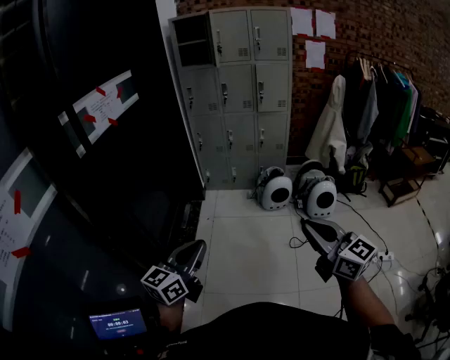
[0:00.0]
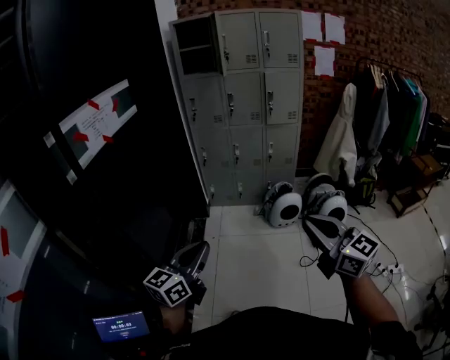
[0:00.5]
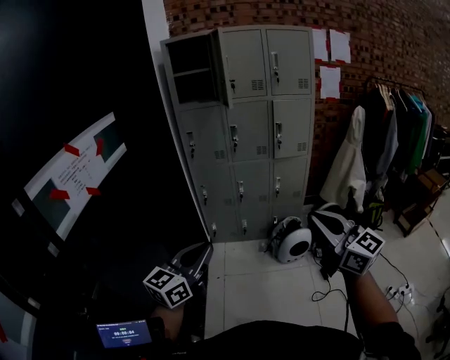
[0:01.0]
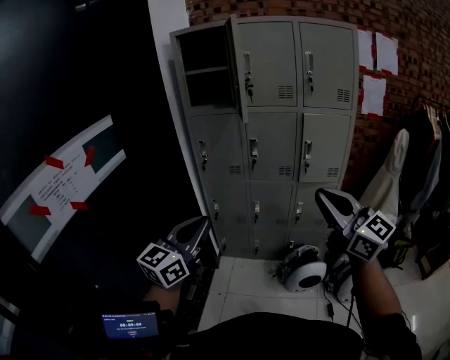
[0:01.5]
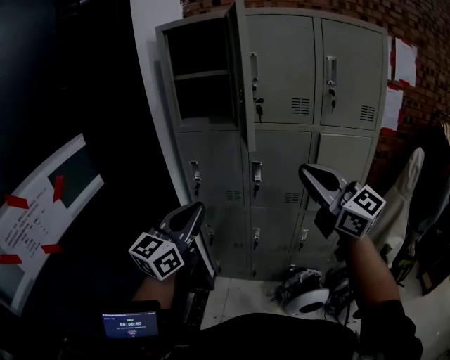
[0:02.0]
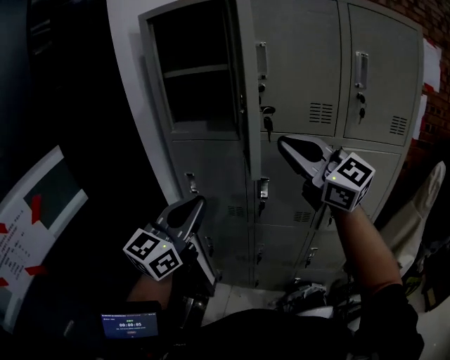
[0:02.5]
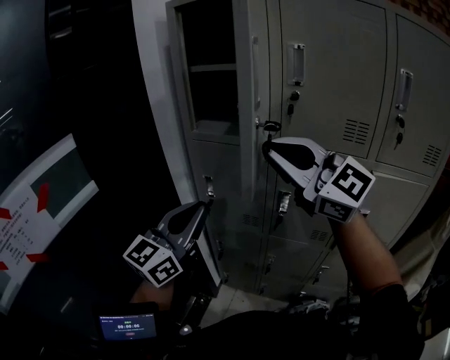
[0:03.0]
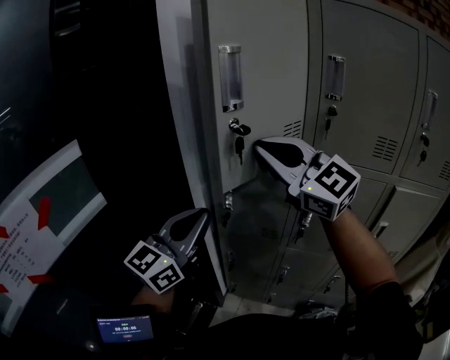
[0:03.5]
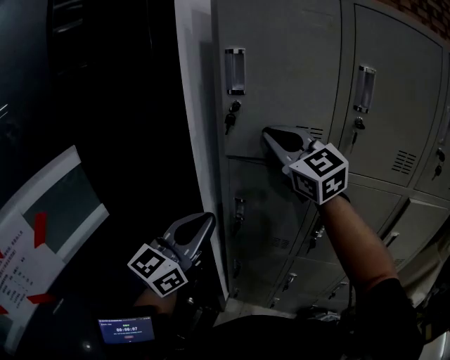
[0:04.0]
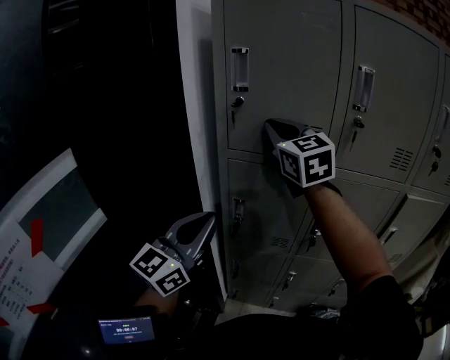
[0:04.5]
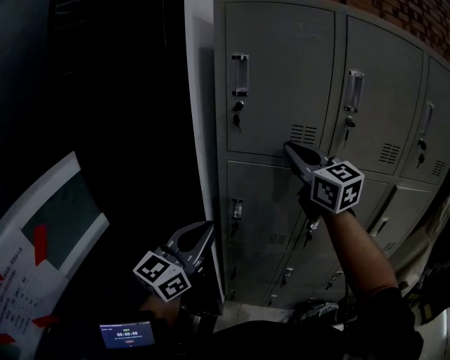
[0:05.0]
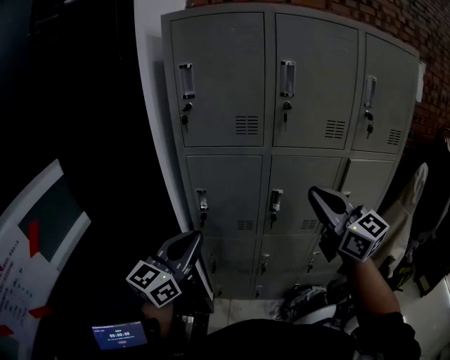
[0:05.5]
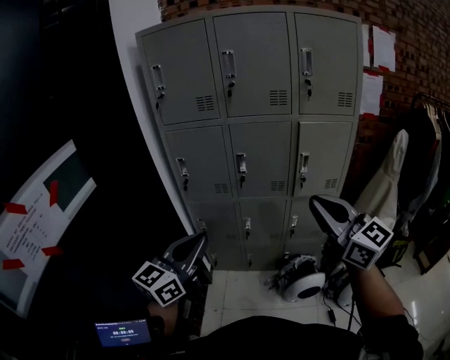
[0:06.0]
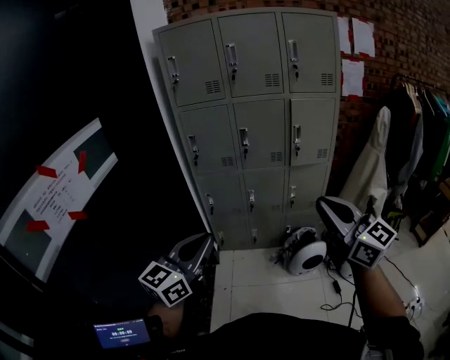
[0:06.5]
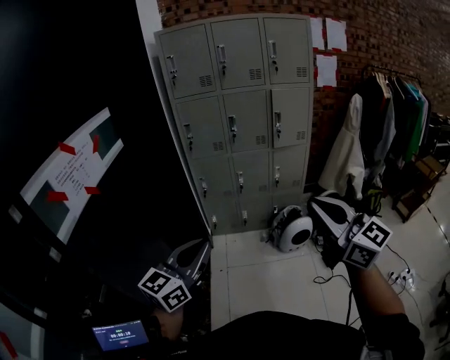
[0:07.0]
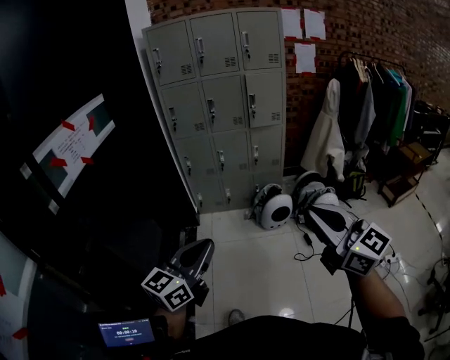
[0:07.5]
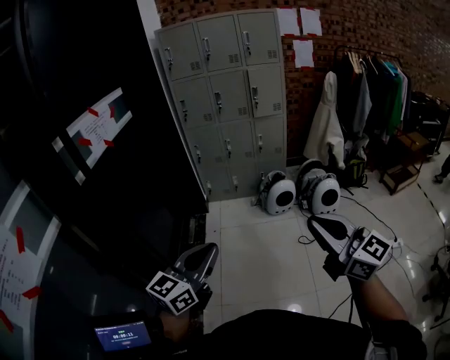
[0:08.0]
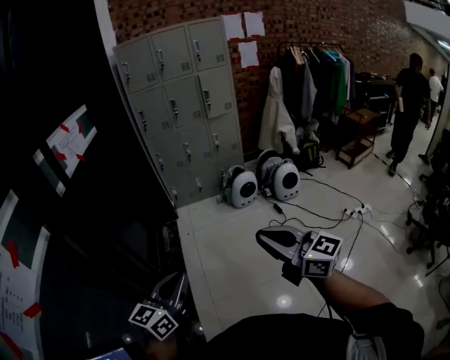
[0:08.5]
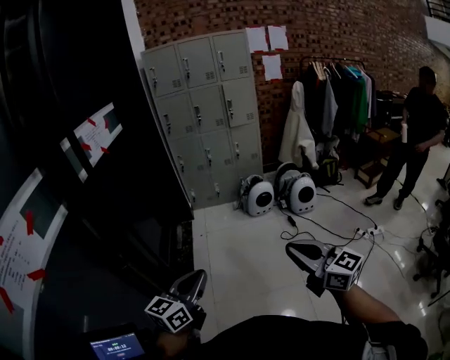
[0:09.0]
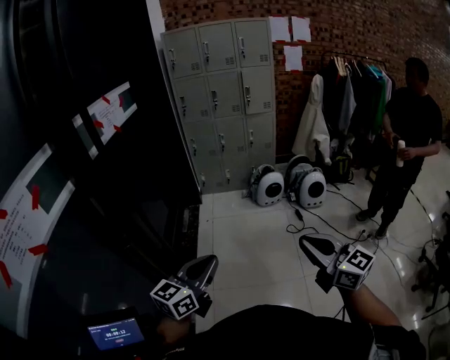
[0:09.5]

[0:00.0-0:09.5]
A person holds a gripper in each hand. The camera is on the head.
0:00.0 to 0:02.0: The pair of grippers is taken forward, approximately 90 cm. The right gripper turns by some 20 degrees.
0:02.0 to 0:04.0: The right gripper moves forward and to the left, about 40 cm. Meanwhile the left gripper goes about 25 cm forward.
0:04.0 to 0:05.5: The left gripper goes roughly 10 cm backward. The right gripper travels to the right and backward by some 30 cm, and rotates some 30 degrees.
0:05.5 to 0:07.5: Both grippers are carried backward, approximately 80 cm.
0:07.5 to 0:09.5: The grippers both shift backward by roughly 35 cm.

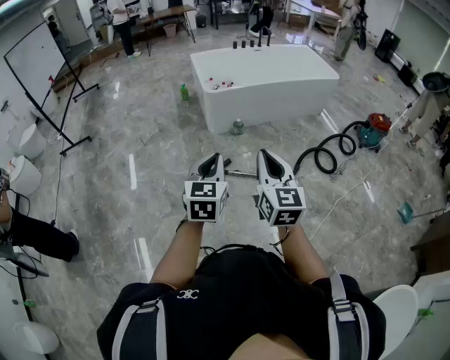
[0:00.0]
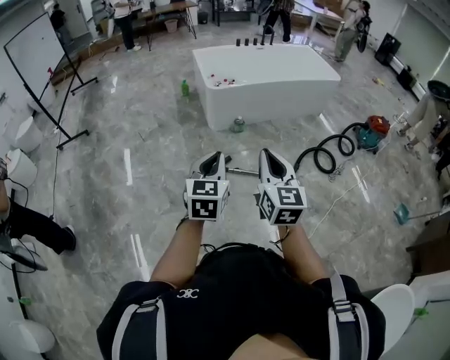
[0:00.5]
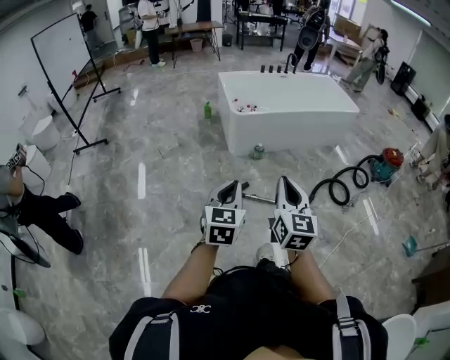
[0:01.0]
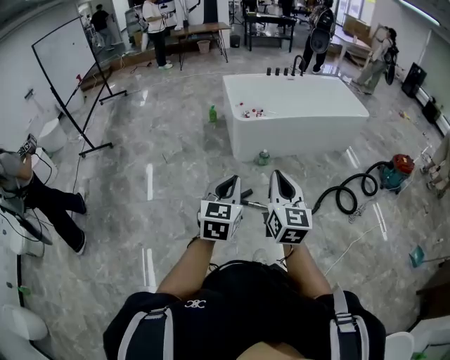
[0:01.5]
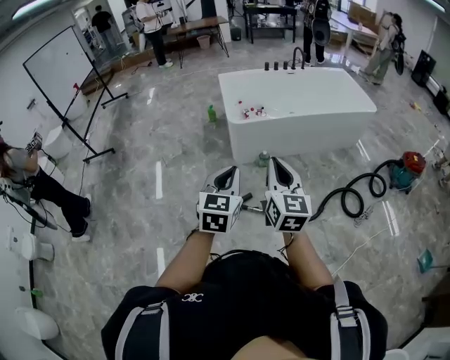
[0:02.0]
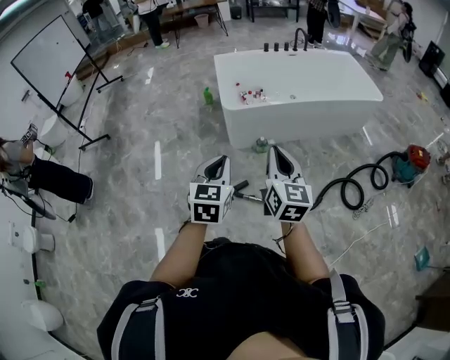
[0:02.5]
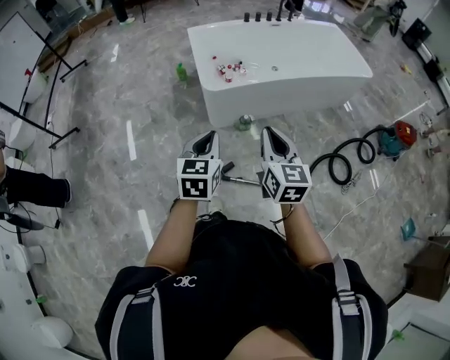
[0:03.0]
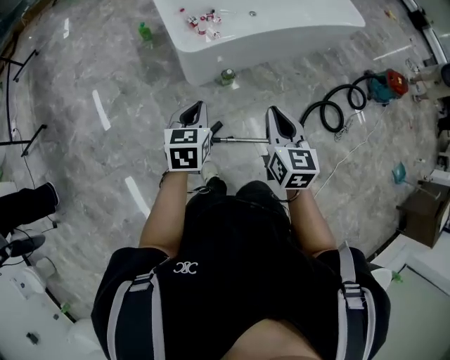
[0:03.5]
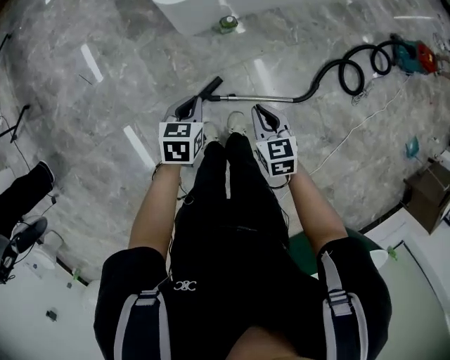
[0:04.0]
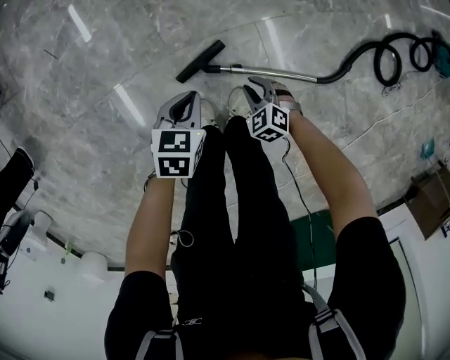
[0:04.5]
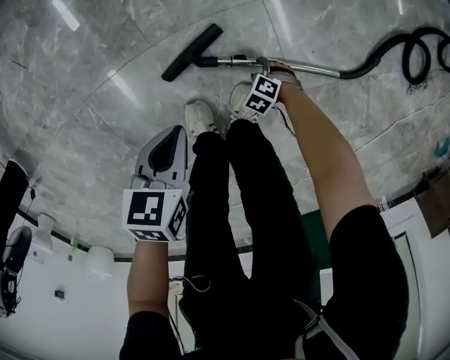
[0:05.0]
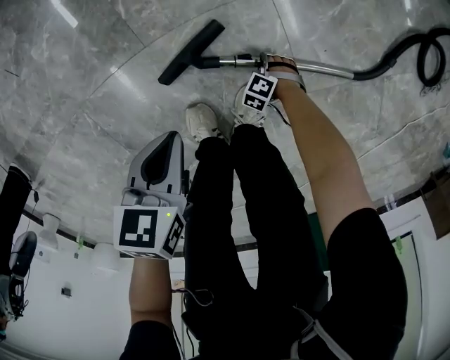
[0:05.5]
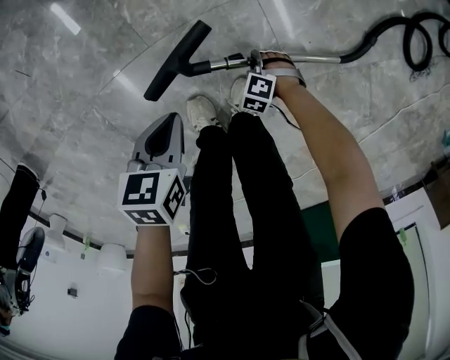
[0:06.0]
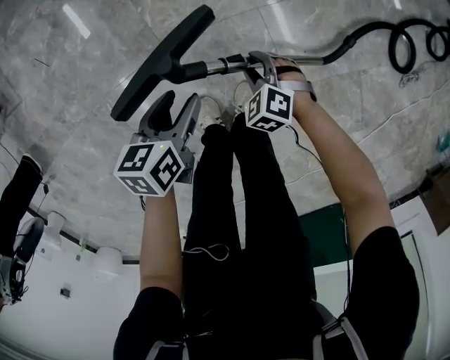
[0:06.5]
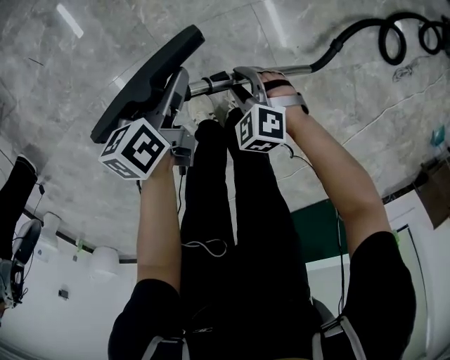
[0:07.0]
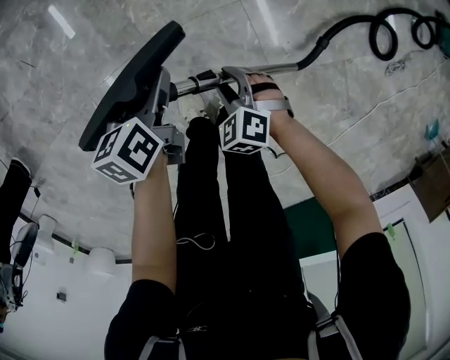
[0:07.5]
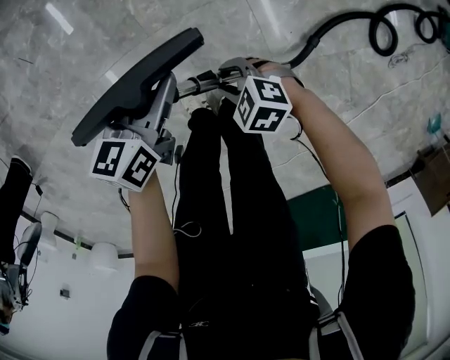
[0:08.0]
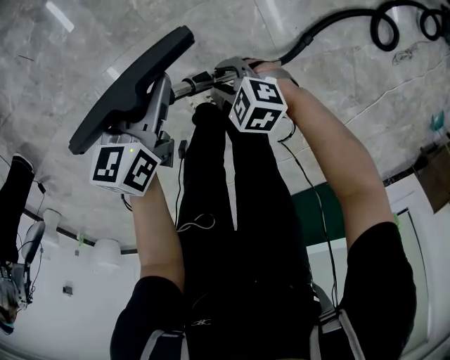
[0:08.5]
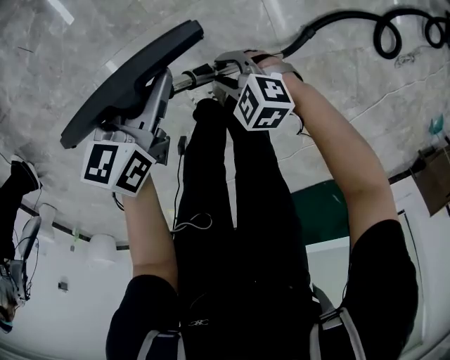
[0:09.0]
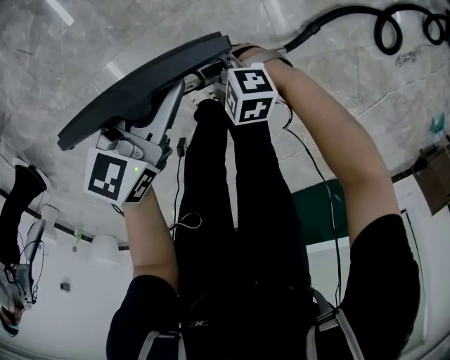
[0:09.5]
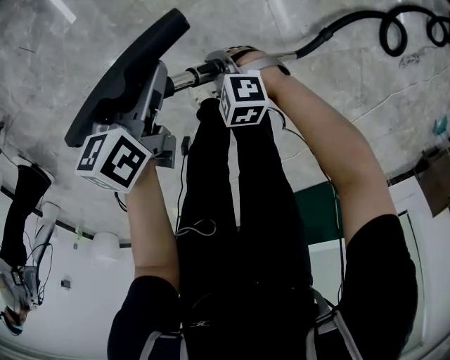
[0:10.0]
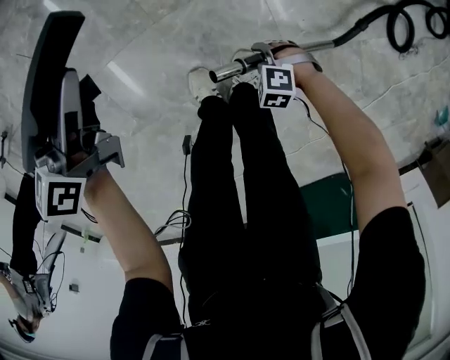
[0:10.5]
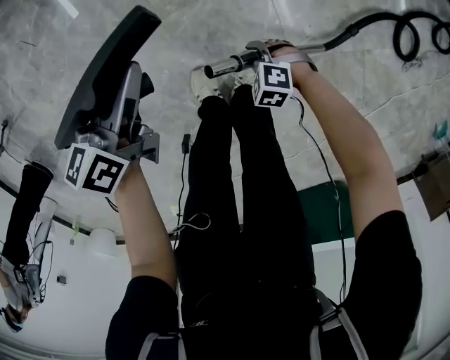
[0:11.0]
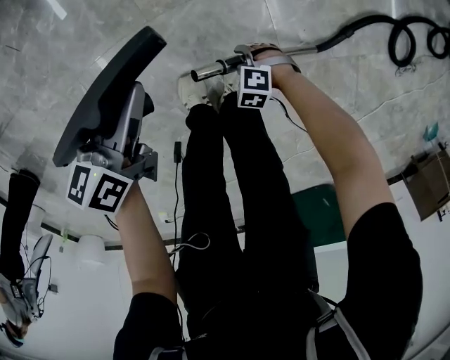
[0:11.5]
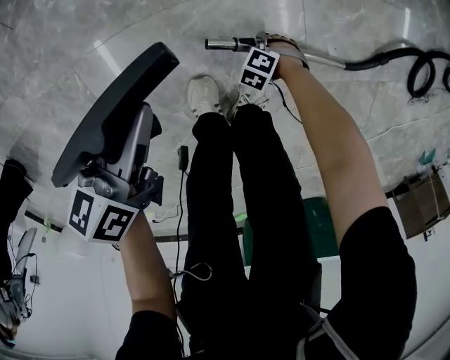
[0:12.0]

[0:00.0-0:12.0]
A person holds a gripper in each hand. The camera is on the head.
0:00.0 to 0:02.0: Both grippers travel together forward, approximately 25 cm.
0:02.0 to 0:04.0: The two grippers go roughly 50 cm downward and forward. The right gripper points its fingers some 40 degrees further downward. Meanwhile the left gripper points its fingers about 30 degrees further downward.
0:04.0 to 0:06.0: The right gripper moves downward, roughly 60 cm, points its fingers about 40 degrees further downward, and opens; the left gripper travels downward by approximately 35 cm.
0:06.0 to 0:08.0: The left gripper heads upward, covering about 10 cm, rotates roughly 30 degrees, and opens up. Meanwhile the right gripper shifts some 25 cm upward, and swivels some 30 degrees.
0:08.0 to 0:10.0: The right gripper changes place by about 10 cm.
0:10.0 to 0:12.0: The left gripper shifts by about 15 cm, while the right gripper is displaced downward by approximately 30 cm, and changes its angle by approximately 30 degrees.

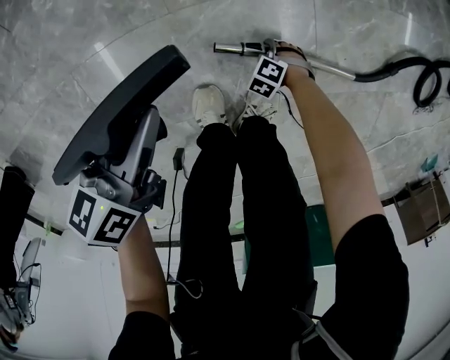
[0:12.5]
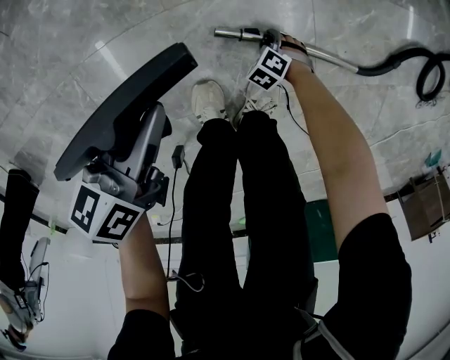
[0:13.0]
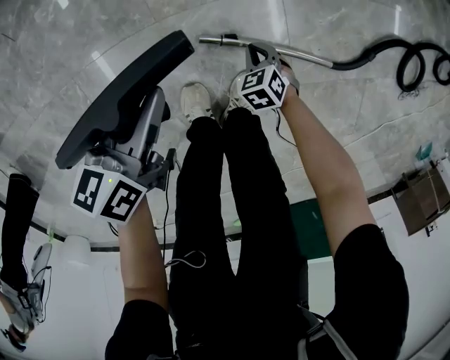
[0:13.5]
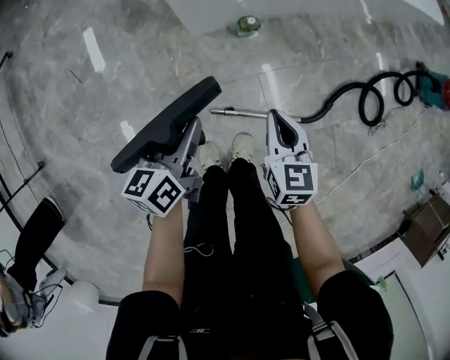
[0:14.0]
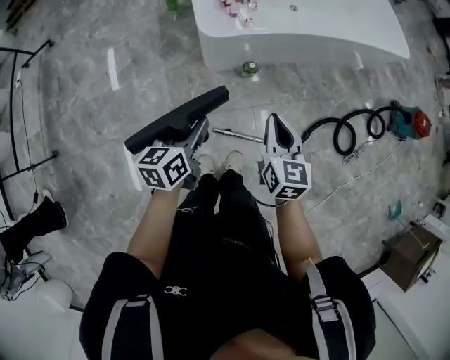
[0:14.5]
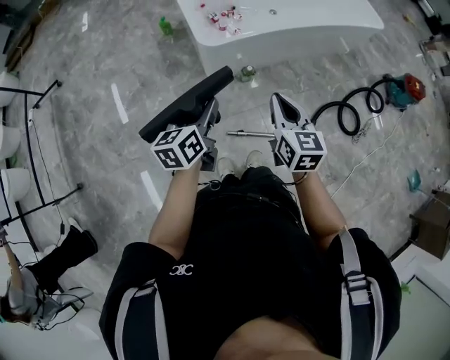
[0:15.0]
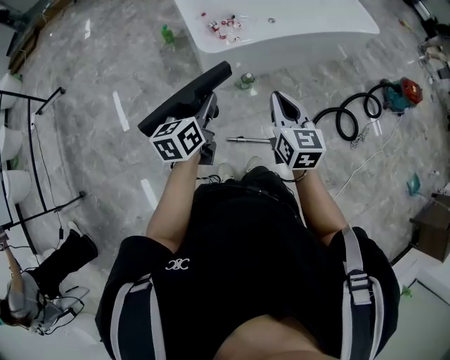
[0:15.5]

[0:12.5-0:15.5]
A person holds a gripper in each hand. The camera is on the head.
0:12.5 to 0:14.0: The right gripper heads upward, covering approximately 60 cm, points its fingers about 50 degrees further upward, and opens and closes again; the left gripper is displaced upward by approximately 30 cm.
0:14.0 to 0:15.5: Both grippers travel together upward, approximately 30 cm.

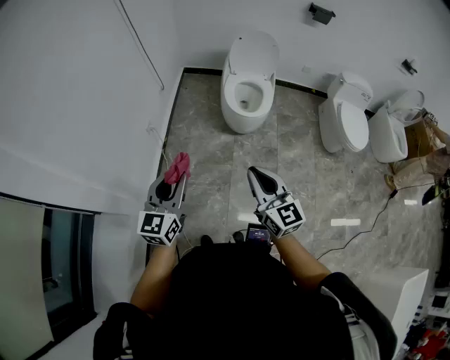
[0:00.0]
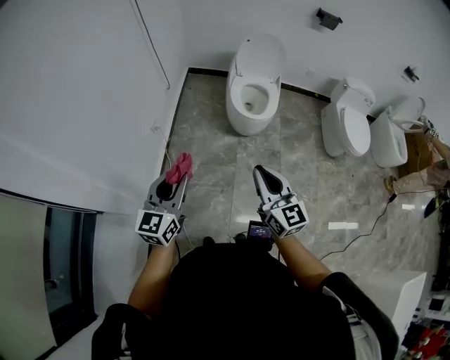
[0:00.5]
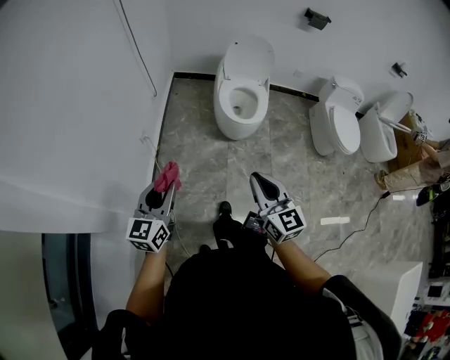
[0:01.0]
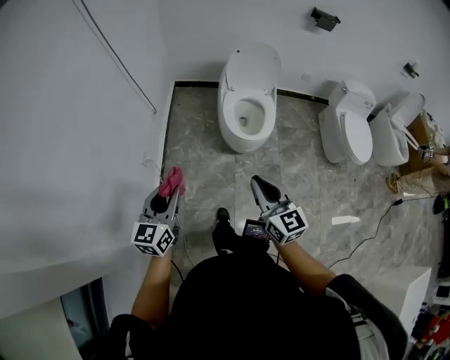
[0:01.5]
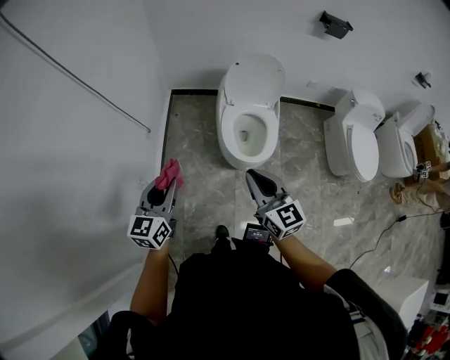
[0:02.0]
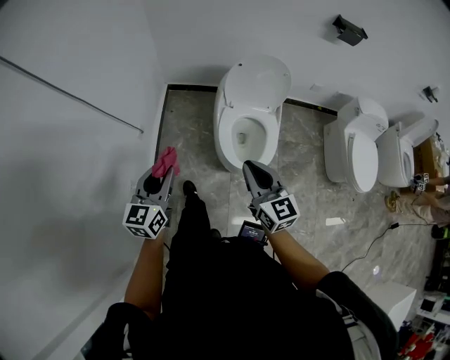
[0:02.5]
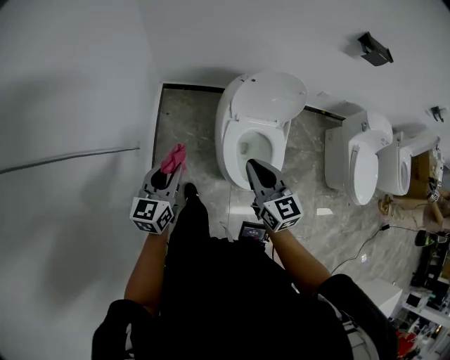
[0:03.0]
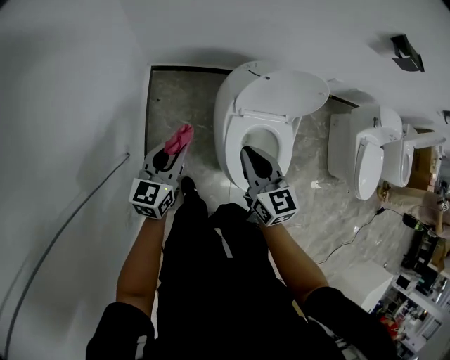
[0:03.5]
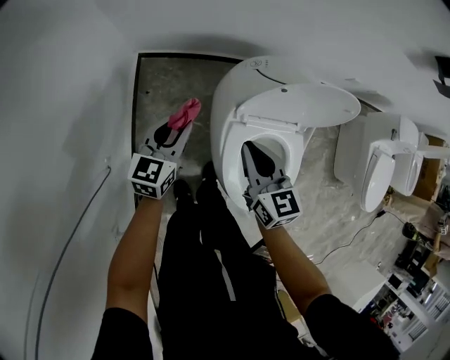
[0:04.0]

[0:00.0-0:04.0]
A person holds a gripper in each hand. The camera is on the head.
0:00.0 to 0:02.0: Both grippers travel together forward, approximately 35 cm.
0:02.0 to 0:04.0: The pair of grippers is taken forward, about 50 cm. The two grippers go about 30 cm downward. The right gripper swivels approximately 20 degrees.
